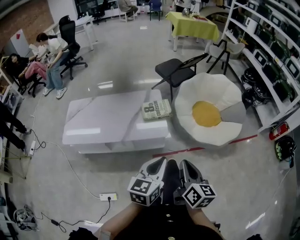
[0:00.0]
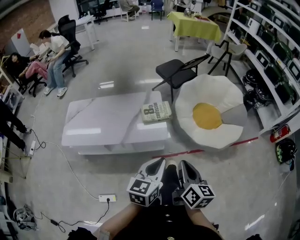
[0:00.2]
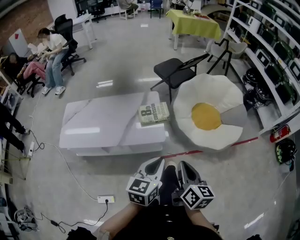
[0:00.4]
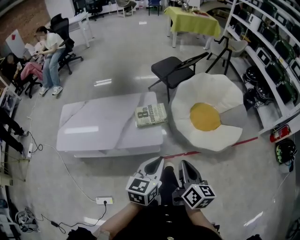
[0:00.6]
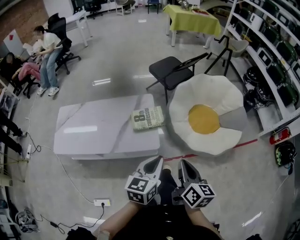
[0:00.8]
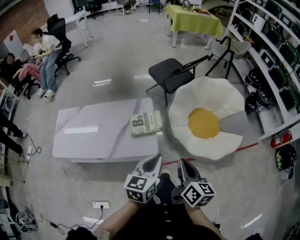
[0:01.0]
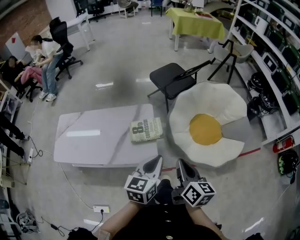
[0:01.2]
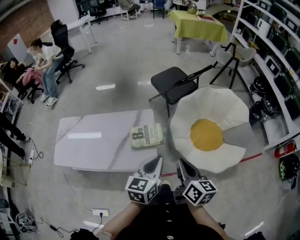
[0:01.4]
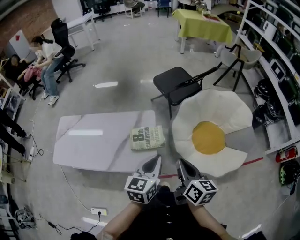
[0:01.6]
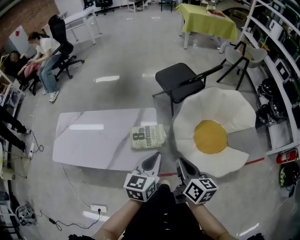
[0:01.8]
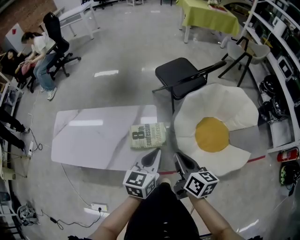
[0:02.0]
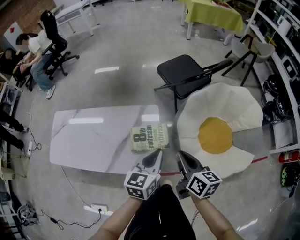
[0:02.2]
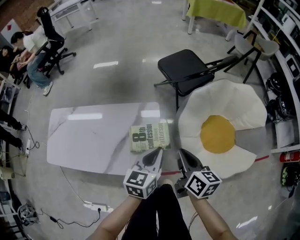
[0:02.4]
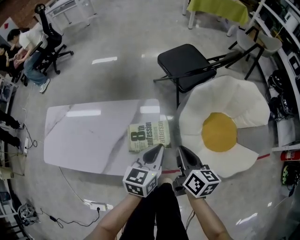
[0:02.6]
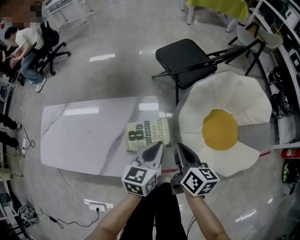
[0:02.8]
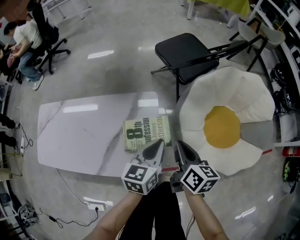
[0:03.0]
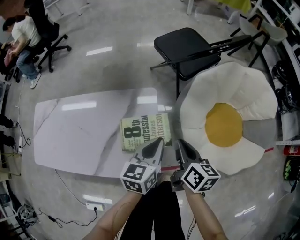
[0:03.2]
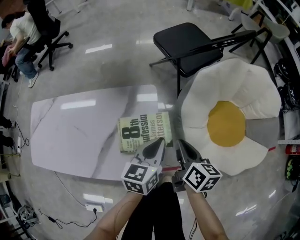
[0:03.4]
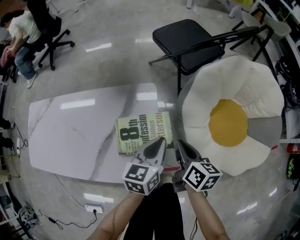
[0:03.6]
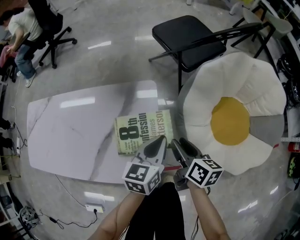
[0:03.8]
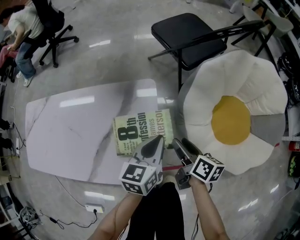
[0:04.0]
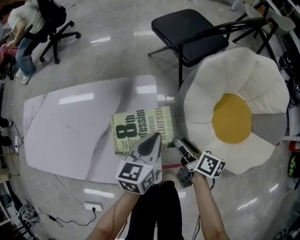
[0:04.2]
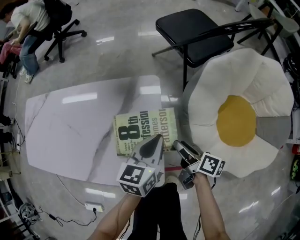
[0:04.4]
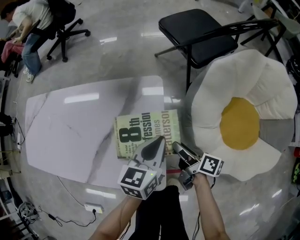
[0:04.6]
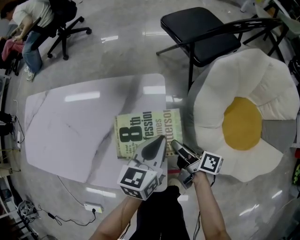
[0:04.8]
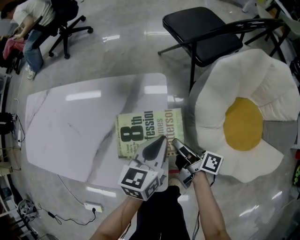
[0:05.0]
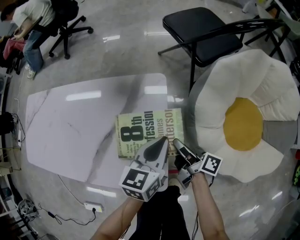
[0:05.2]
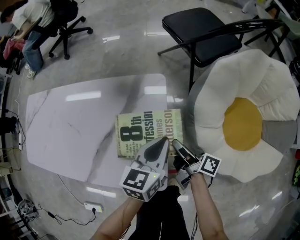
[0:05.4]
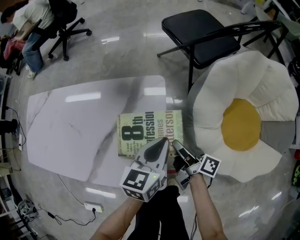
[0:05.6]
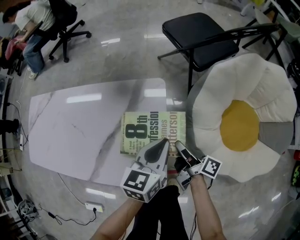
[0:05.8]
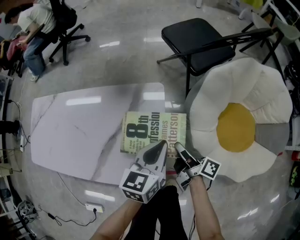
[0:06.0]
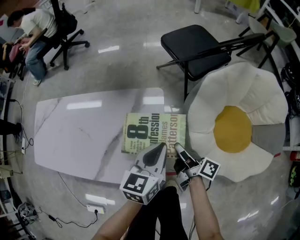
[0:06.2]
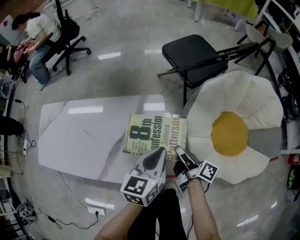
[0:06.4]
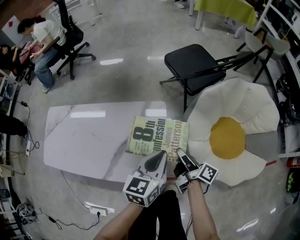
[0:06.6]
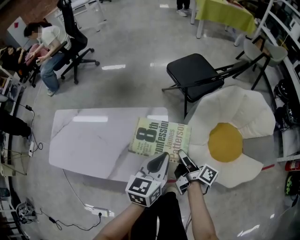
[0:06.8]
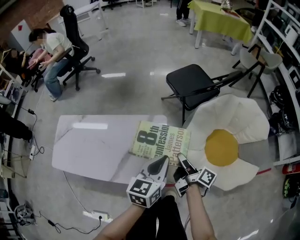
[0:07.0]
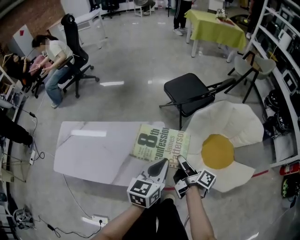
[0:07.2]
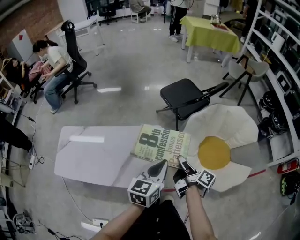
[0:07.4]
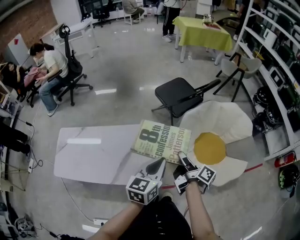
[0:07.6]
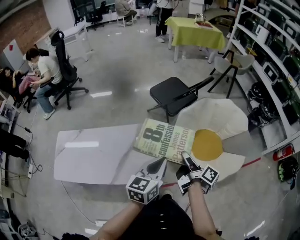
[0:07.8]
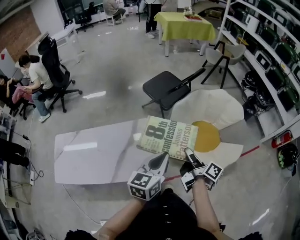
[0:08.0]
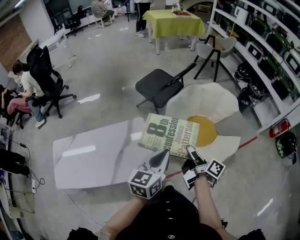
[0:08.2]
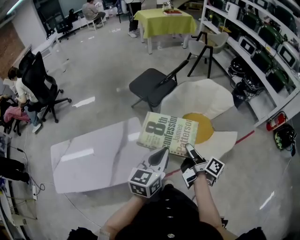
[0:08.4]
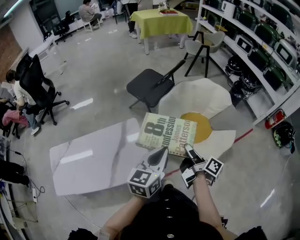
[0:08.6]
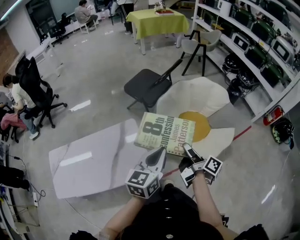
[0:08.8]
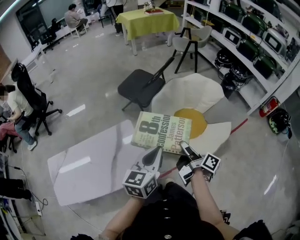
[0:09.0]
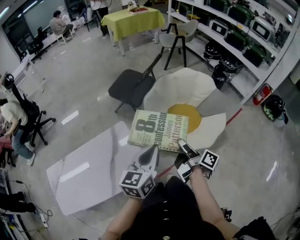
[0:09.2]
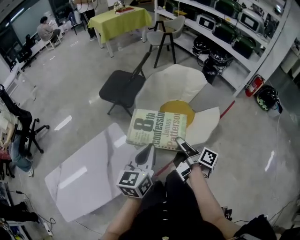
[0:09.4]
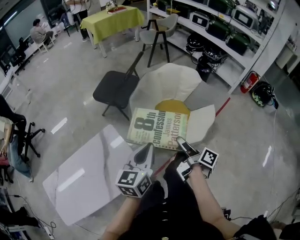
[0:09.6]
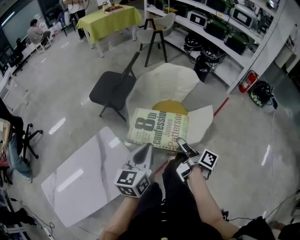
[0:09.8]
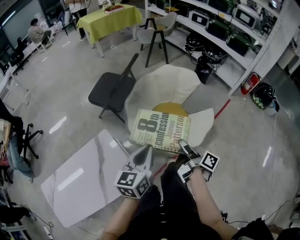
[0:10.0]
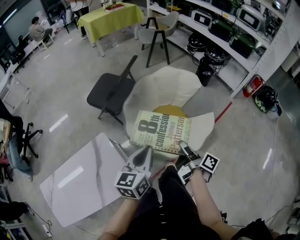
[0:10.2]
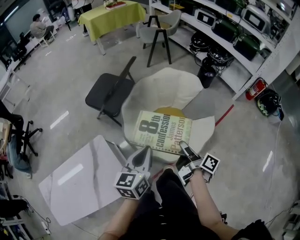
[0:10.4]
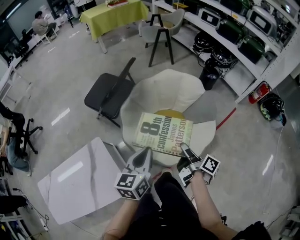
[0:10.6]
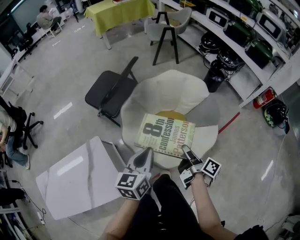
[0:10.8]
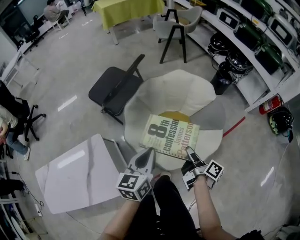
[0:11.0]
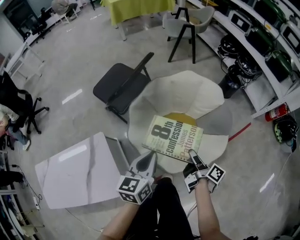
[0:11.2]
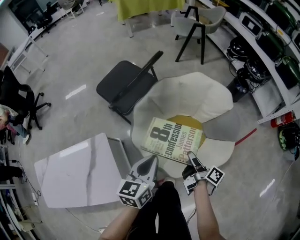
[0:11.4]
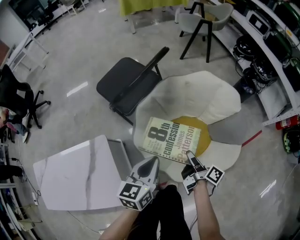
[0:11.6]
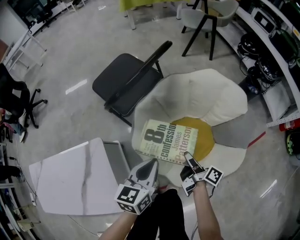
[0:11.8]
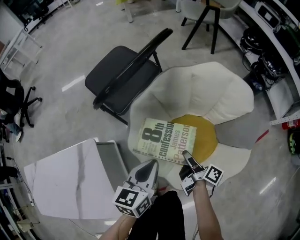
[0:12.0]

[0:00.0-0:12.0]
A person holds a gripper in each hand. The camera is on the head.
0:00.0 to 0:01.6: Both grippers move forward, roughly 35 cm.
0:01.6 to 0:03.0: The grippers both shift downward and forward by about 25 cm.
0:03.0 to 0:04.4: The right gripper moves downward, approximately 25 cm, rotates approximately 30 degrees, and opens up. Meanwhile the left gripper moves downward, approximately 15 cm.
0:04.4 to 0:06.0: The left gripper is displaced upward by approximately 5 cm; the right gripper moves approximately 5 cm.
0:06.0 to 0:07.6: Both grippers travel together upward, roughly 35 cm.
0:07.6 to 0:09.0: The right gripper is displaced to the right and backward by about 15 cm; the left gripper travels to the right by approximately 10 cm.
0:09.0 to 0:10.4: The left gripper moves forward and to the right, some 20 cm, while the right gripper moves to the right and forward, roughly 20 cm.
0:10.4 to 0:12.0: Both grippers move downward and forward, about 35 cm.

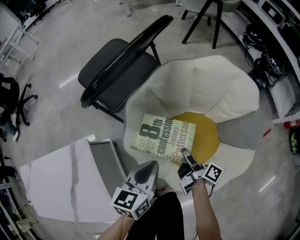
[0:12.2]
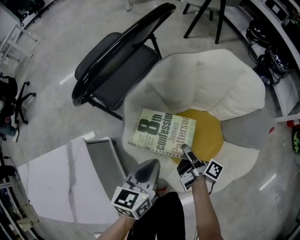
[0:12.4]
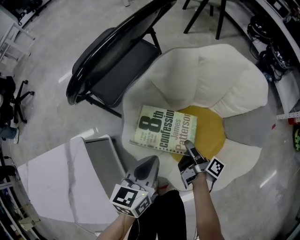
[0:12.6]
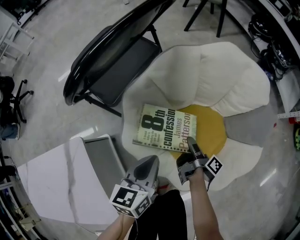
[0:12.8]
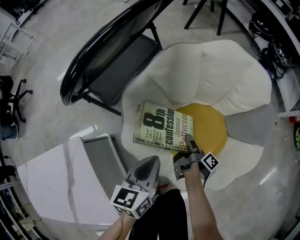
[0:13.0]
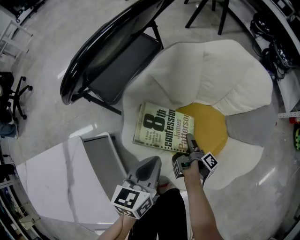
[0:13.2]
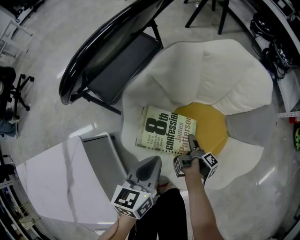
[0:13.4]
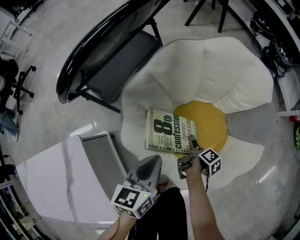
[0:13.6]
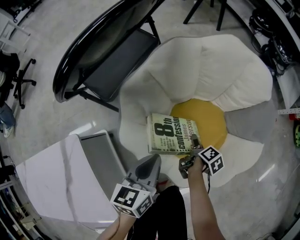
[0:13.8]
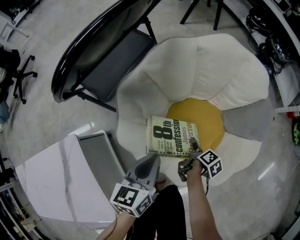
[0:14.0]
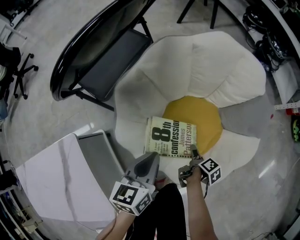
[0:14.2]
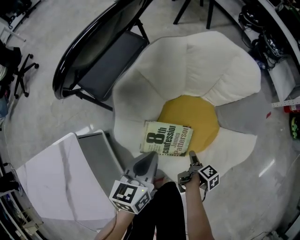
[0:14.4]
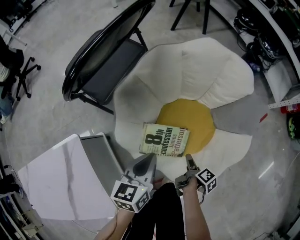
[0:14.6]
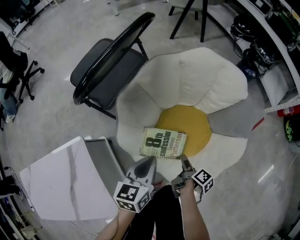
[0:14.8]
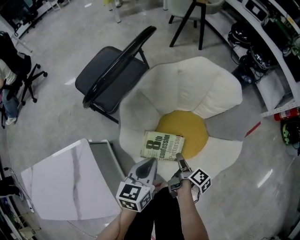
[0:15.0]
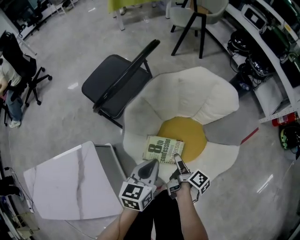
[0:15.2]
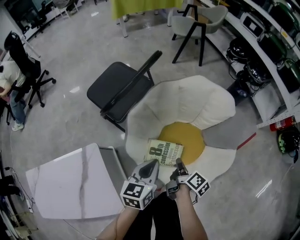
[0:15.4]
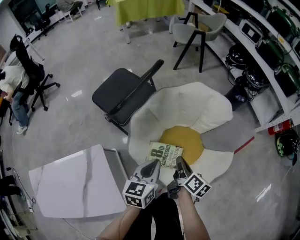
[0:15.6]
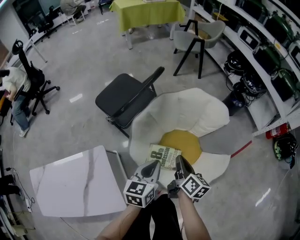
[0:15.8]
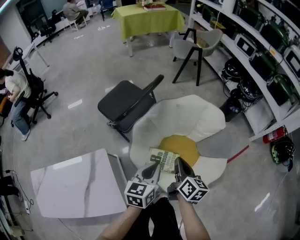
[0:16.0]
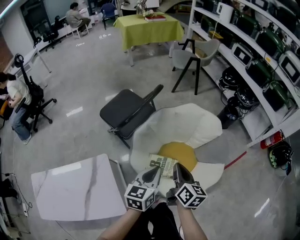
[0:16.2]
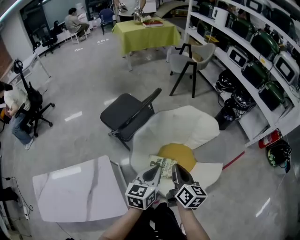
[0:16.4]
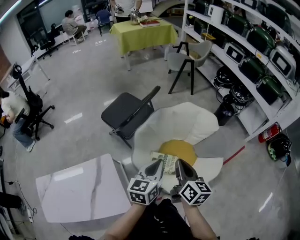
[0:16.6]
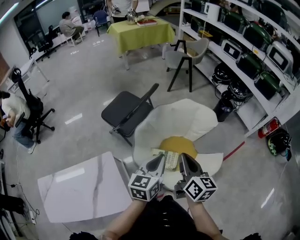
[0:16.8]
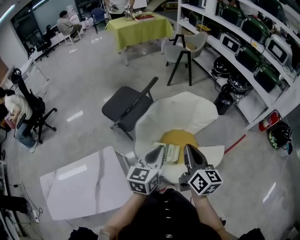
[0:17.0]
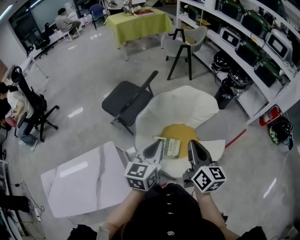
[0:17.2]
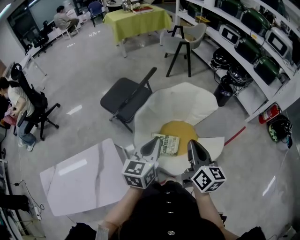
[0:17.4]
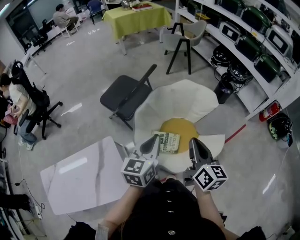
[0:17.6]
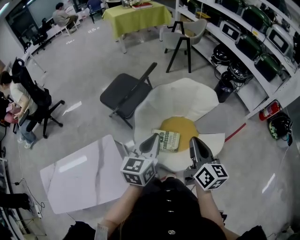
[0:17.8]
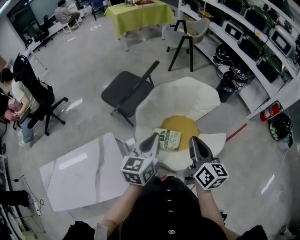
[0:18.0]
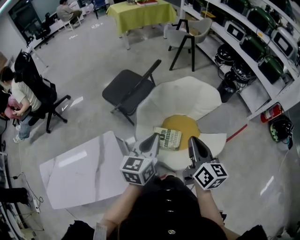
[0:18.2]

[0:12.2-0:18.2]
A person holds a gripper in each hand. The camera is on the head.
0:12.2 to 0:13.8: The right gripper goes roughly 20 cm downward and to the right, tips its fingers downward by some 40 degrees, and opens its fingers; the left gripper moves downward, approximately 10 cm.
0:13.8 to 0:15.2: The right gripper shifts about 25 cm upward, and rotates roughly 30 degrees, while the left gripper is displaced upward by roughly 15 cm.
0:15.2 to 0:16.6: The grippers both shift upward by some 30 cm. The right gripper rolls counterclockwise, seen from behind, by roughly 50 degrees, and closes.
0:16.6 to 0:18.2: The right gripper ends up approximately 5 cm from where it was. The left gripper shifts by about 5 cm.

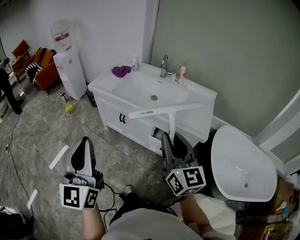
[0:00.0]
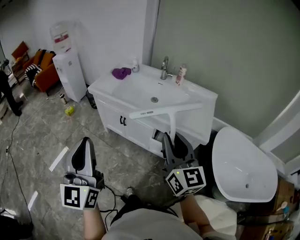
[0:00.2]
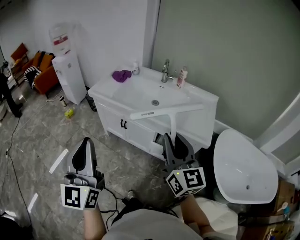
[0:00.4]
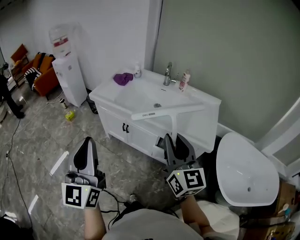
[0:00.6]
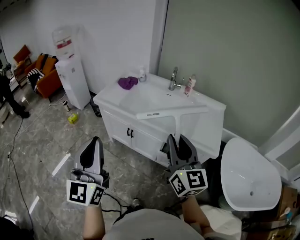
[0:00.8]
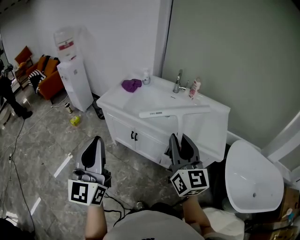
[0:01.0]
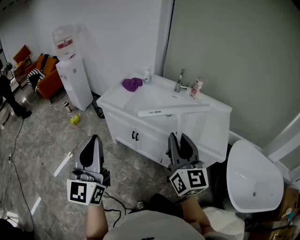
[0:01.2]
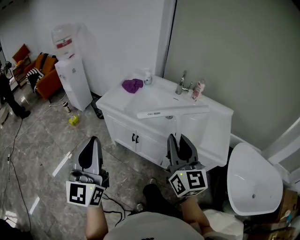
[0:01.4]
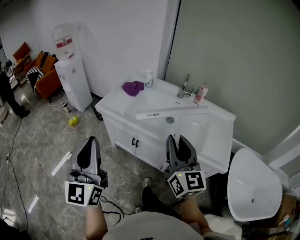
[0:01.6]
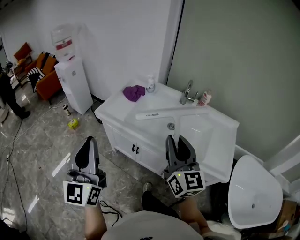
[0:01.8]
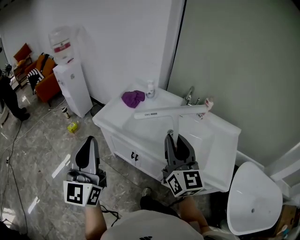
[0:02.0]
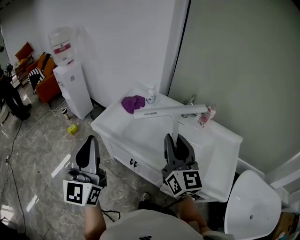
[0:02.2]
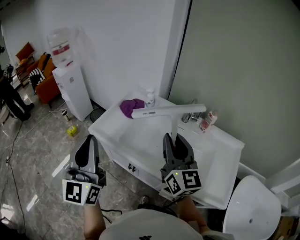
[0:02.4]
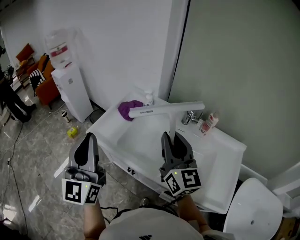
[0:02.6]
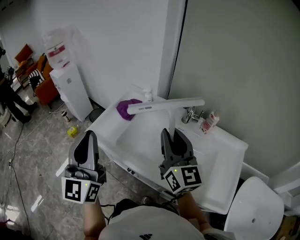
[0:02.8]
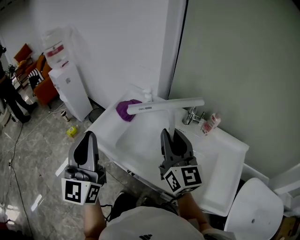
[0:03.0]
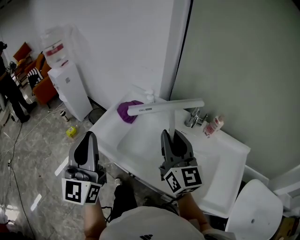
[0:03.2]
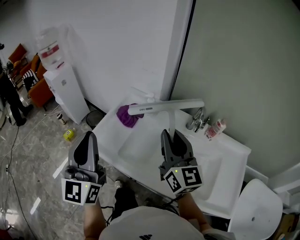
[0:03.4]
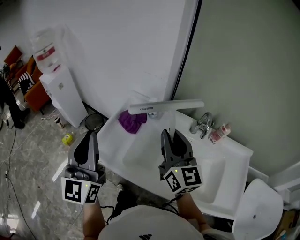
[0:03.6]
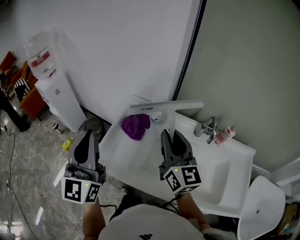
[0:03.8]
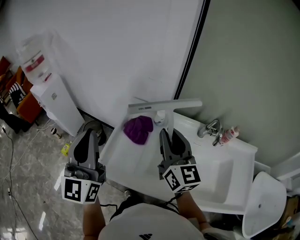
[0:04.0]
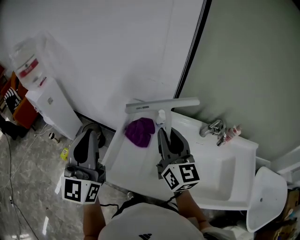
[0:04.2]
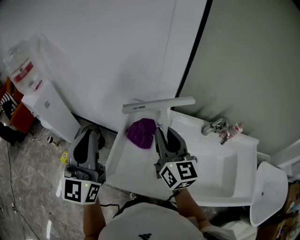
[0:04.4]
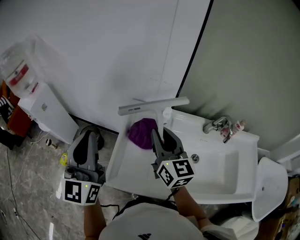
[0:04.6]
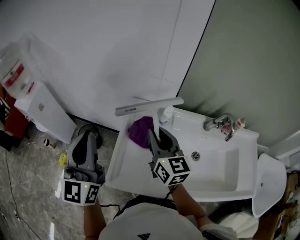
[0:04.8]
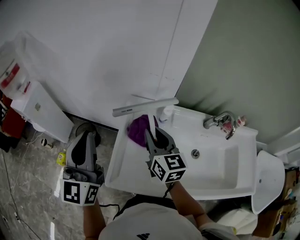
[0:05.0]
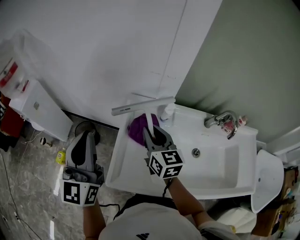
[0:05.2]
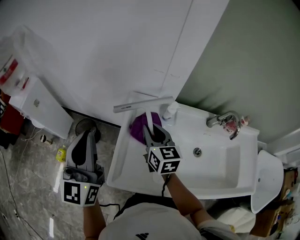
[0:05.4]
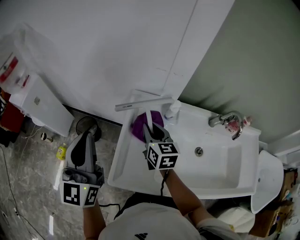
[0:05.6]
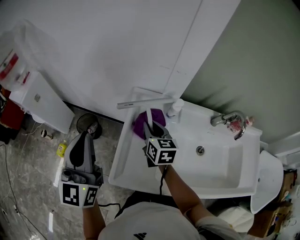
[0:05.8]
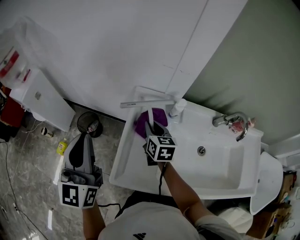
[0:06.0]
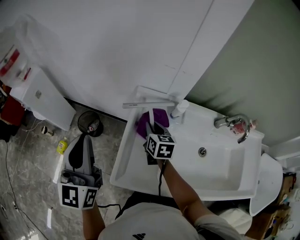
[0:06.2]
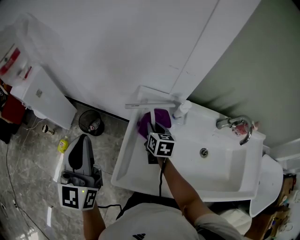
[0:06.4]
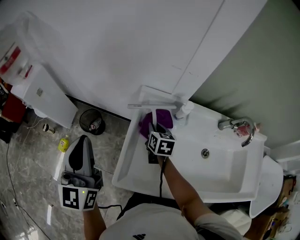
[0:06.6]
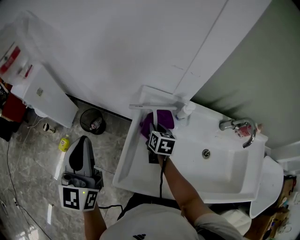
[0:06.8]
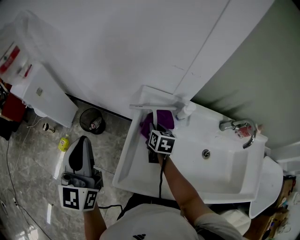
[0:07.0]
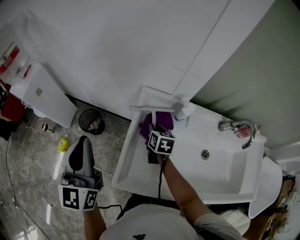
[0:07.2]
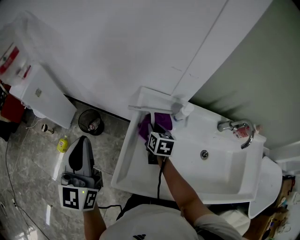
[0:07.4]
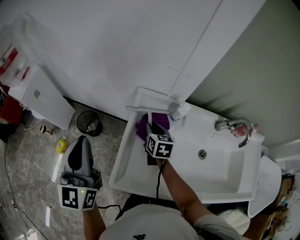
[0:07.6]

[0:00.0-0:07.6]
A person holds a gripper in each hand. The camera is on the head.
0:00.0 to 0:01.6: Both grippers move forward, about 20 cm.
0:01.6 to 0:03.0: Both grippers travel together forward, some 25 cm.
0:03.0 to 0:04.6: Both grippers move forward and to the left, about 30 cm.
0:04.6 to 0:06.0: The right gripper moves downward and forward, some 20 cm, and turns by about 30 degrees; the left gripper shifts roughly 10 cm downward and to the left.
